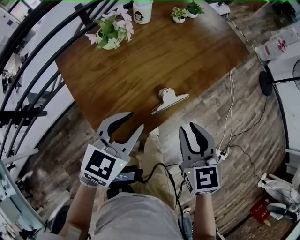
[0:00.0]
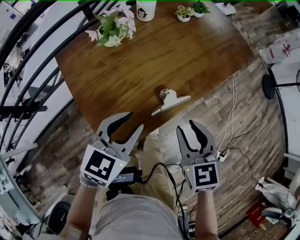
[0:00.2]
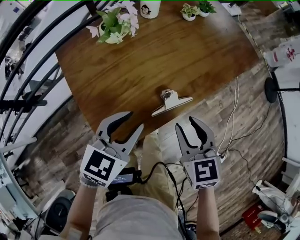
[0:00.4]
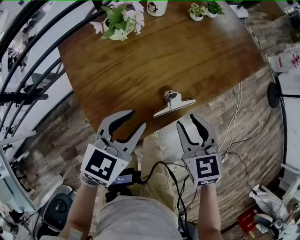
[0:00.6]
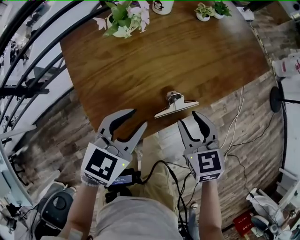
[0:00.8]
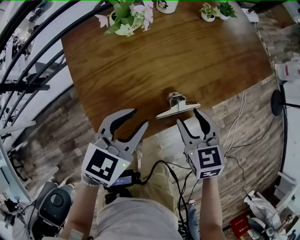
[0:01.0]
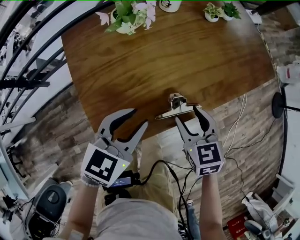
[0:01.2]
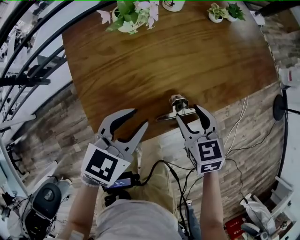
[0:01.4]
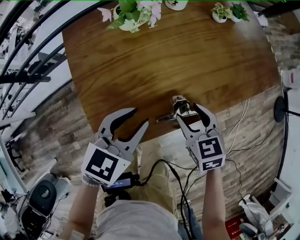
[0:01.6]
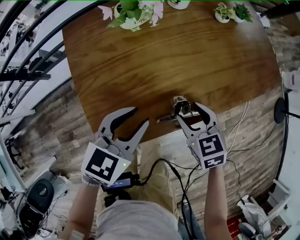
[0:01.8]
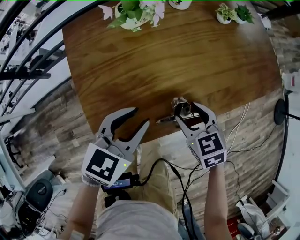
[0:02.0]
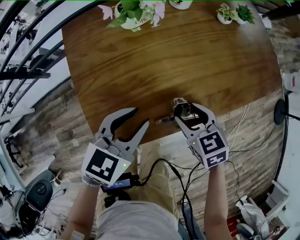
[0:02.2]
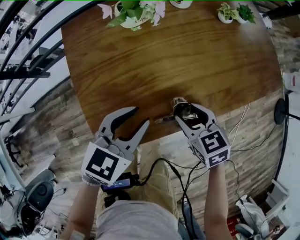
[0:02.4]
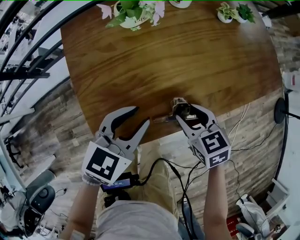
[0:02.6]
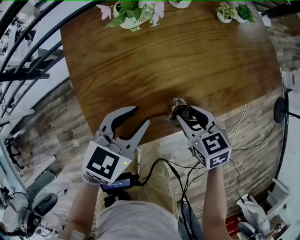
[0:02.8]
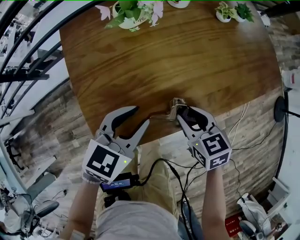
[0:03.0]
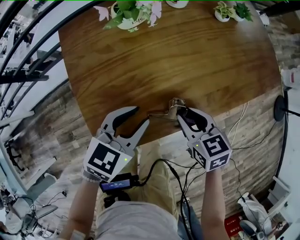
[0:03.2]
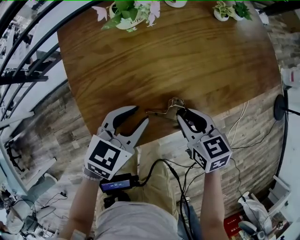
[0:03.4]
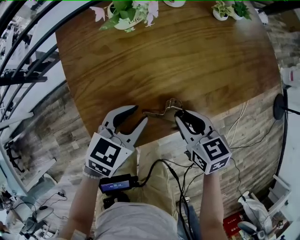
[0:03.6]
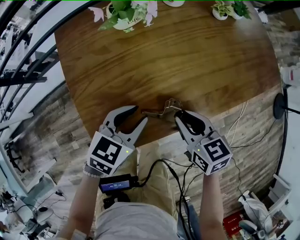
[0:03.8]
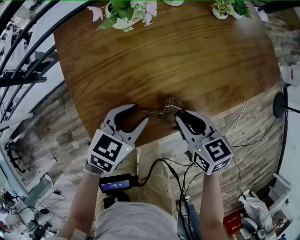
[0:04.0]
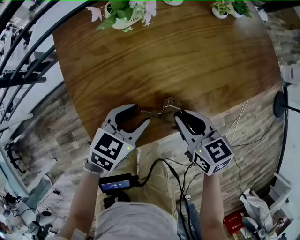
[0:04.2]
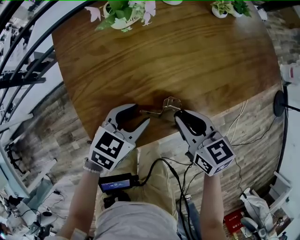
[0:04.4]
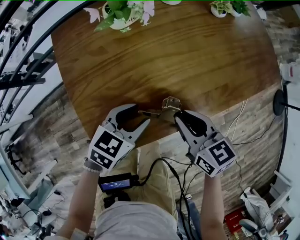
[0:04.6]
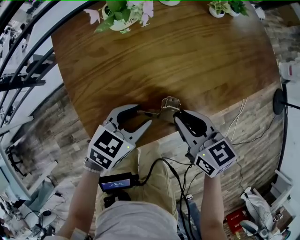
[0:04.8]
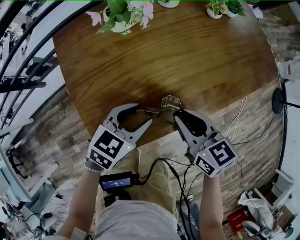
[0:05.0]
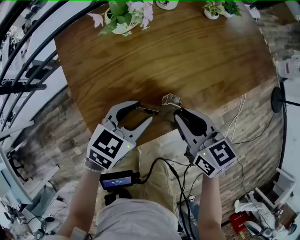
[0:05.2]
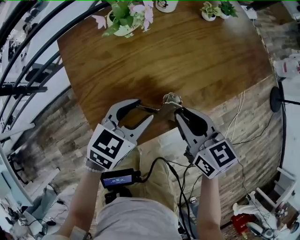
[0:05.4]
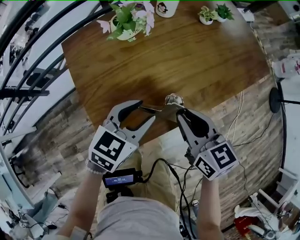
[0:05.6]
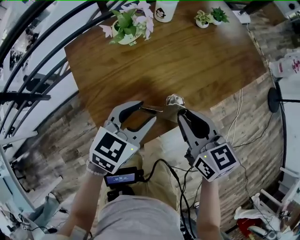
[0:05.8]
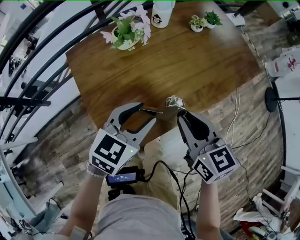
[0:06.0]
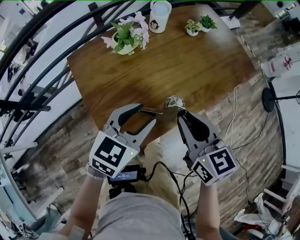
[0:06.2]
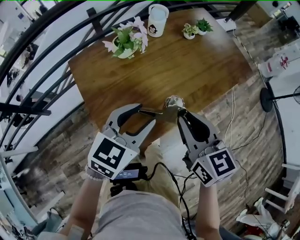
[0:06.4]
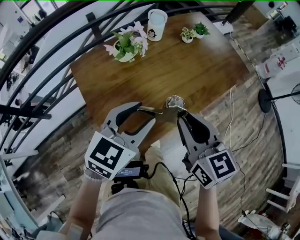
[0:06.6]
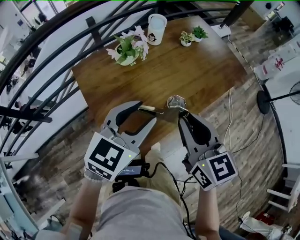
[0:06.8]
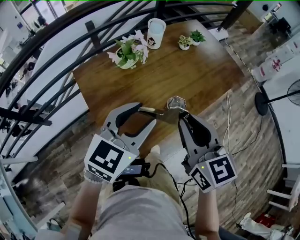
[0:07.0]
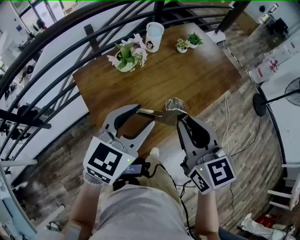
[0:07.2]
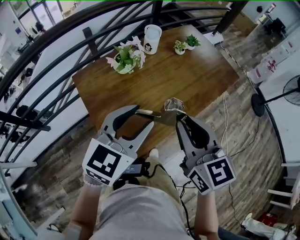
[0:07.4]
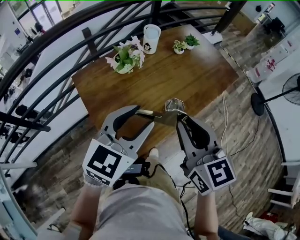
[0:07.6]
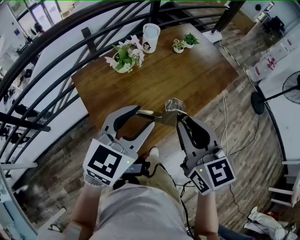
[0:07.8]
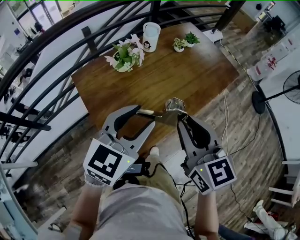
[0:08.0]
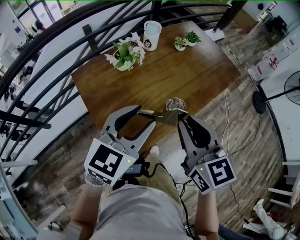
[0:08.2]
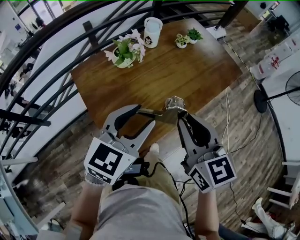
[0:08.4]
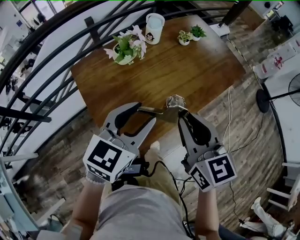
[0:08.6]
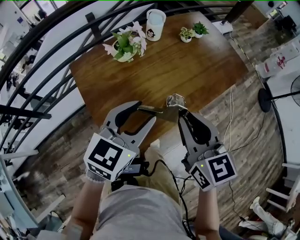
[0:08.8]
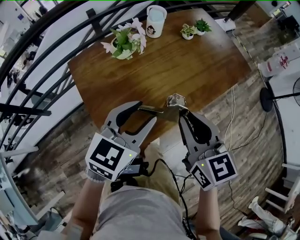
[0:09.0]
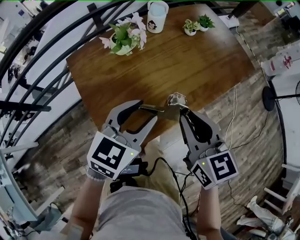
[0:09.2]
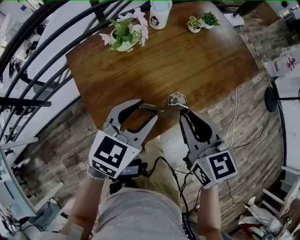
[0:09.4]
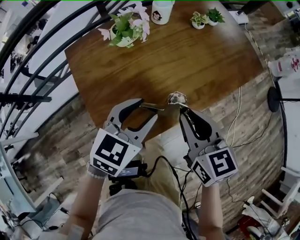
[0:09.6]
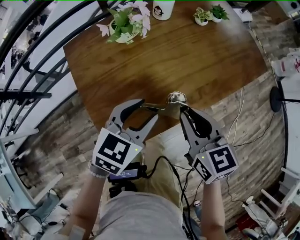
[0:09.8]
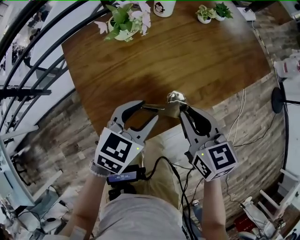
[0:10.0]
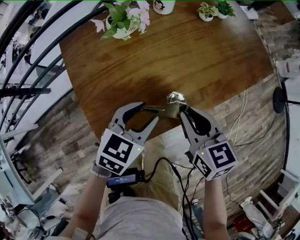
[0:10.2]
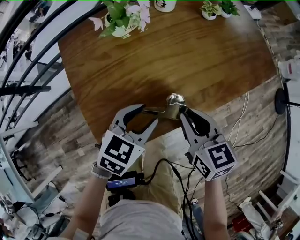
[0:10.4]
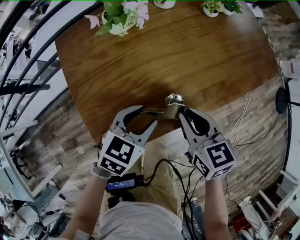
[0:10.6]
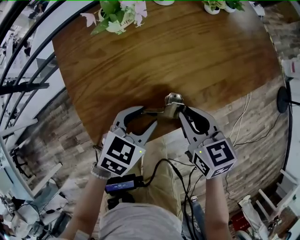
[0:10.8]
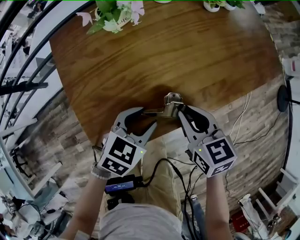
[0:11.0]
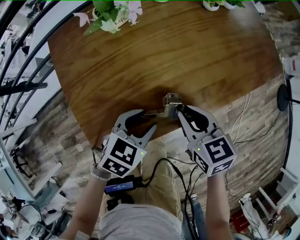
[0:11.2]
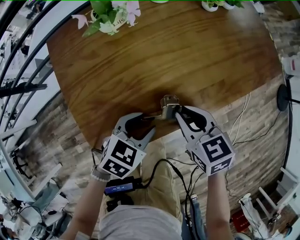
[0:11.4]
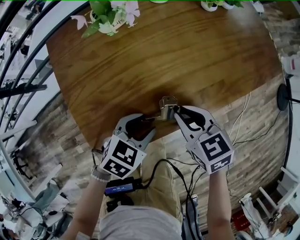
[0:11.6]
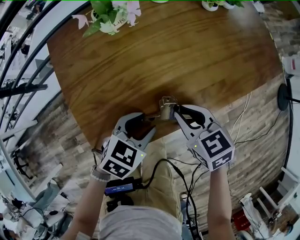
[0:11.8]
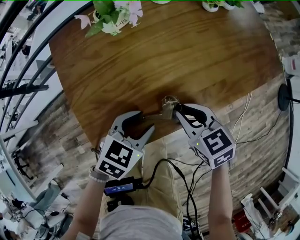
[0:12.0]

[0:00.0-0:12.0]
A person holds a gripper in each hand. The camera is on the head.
0:00.0 to 0:01.6: The right gripper goes about 20 cm downward and forward, rotates about 30 degrees, and opens its fingers; the left gripper goes roughly 5 cm downward.
0:01.6 to 0:03.0: The right gripper closes.
0:03.0 to 0:04.4: The left gripper heads downward, covering approximately 5 cm.
0:04.4 to 0:06.0: Both grippers move upward, approximately 15 cm.
0:06.0 to 0:07.6: Both grippers move upward, roughly 15 cm.
0:07.6 to 0:09.0: The grippers both shift downward by roughly 5 cm.
0:09.0 to 0:10.4: The grippers both shift downward by roughly 15 cm.
0:10.4 to 0:12.0: The two grippers go some 5 cm downward.

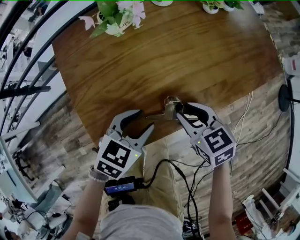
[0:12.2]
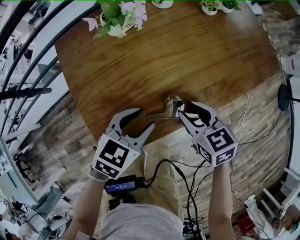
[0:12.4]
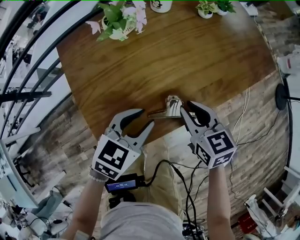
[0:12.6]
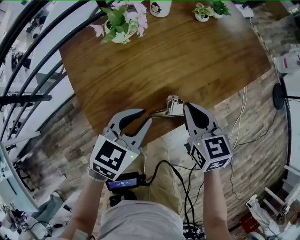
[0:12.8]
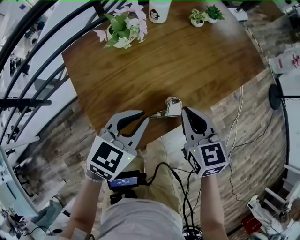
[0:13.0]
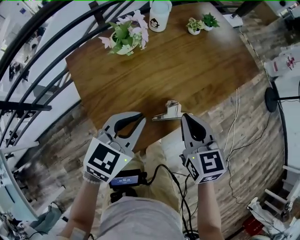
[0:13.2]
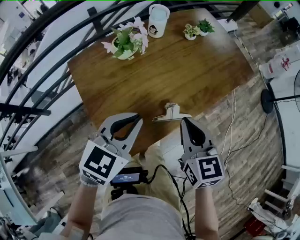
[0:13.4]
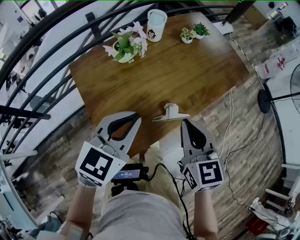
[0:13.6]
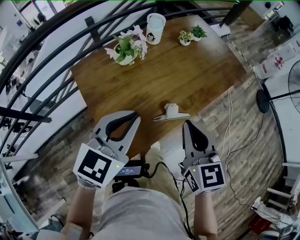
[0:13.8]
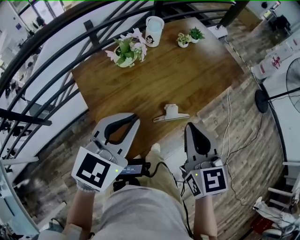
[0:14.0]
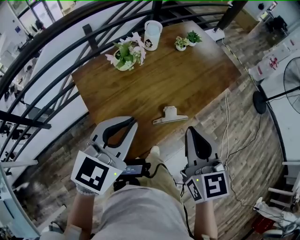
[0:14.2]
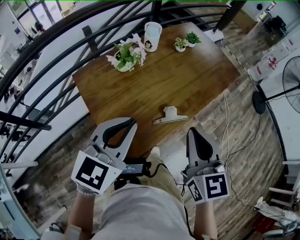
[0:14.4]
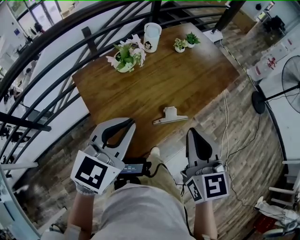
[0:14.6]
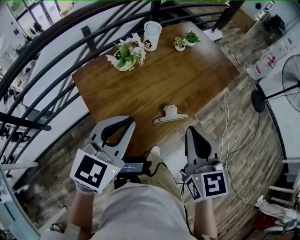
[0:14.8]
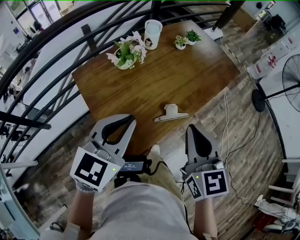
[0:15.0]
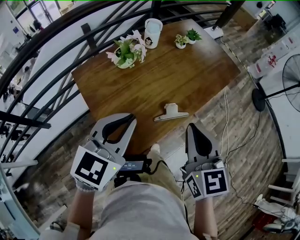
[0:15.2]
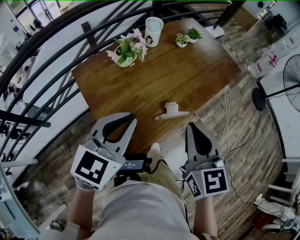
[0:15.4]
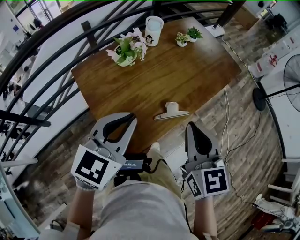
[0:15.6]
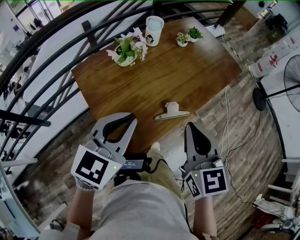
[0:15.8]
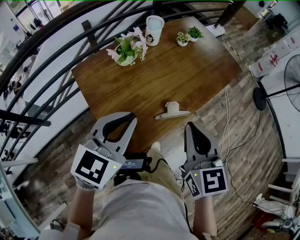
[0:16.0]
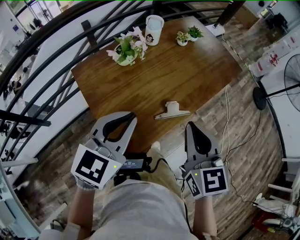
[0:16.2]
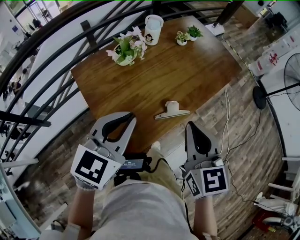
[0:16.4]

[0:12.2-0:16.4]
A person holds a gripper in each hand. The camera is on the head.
0:12.2 to 0:13.6: Both grippers move upward, some 20 cm. The left gripper changes its angle by some 30 degrees, and closes up; the right gripper changes its angle by roughly 40 degrees, and closes.
0:13.6 to 0:15.0: The left gripper ends up some 5 cm from where it was; the right gripper moves upward and backward, about 10 cm.
0:15.0 to 0:16.4: Neither gripper changes place.

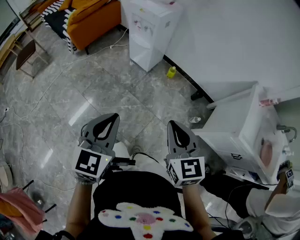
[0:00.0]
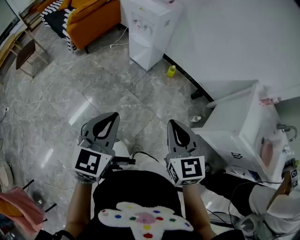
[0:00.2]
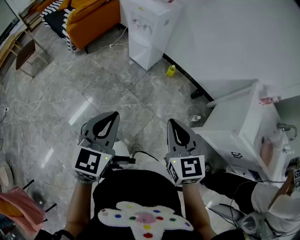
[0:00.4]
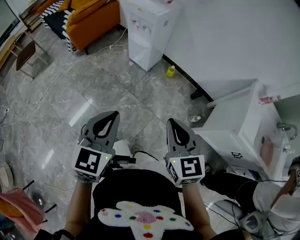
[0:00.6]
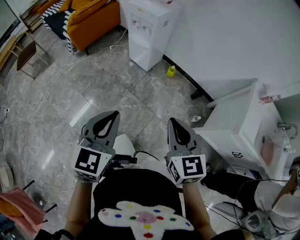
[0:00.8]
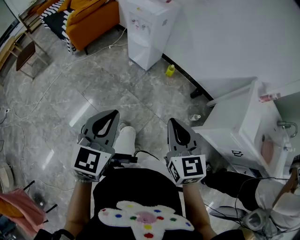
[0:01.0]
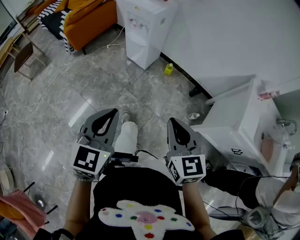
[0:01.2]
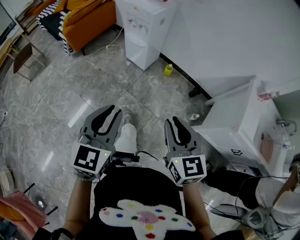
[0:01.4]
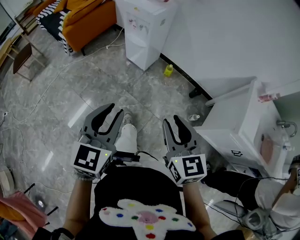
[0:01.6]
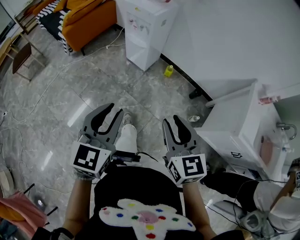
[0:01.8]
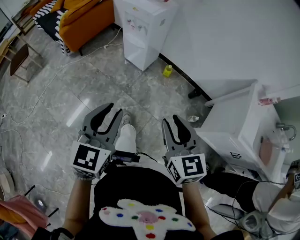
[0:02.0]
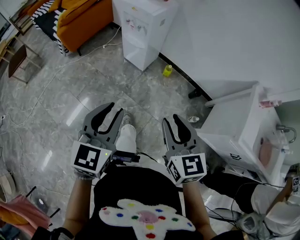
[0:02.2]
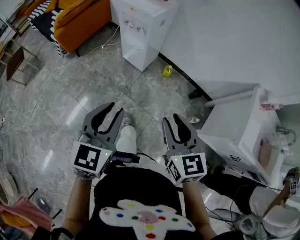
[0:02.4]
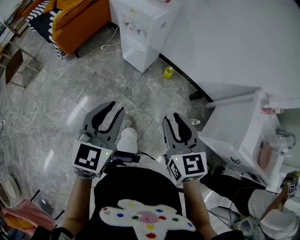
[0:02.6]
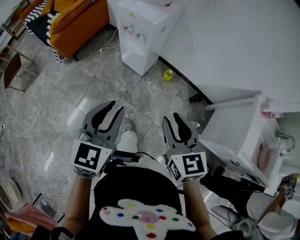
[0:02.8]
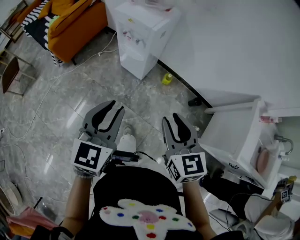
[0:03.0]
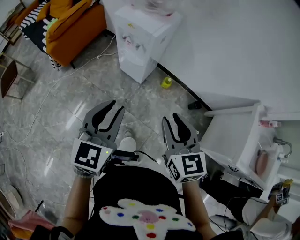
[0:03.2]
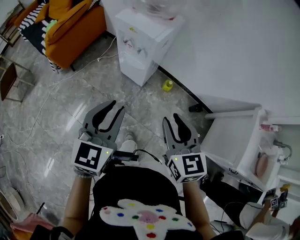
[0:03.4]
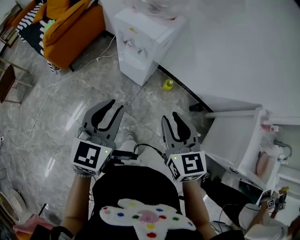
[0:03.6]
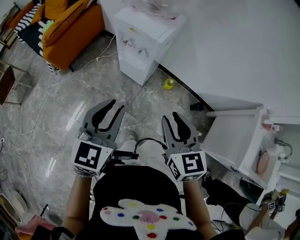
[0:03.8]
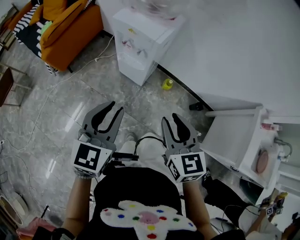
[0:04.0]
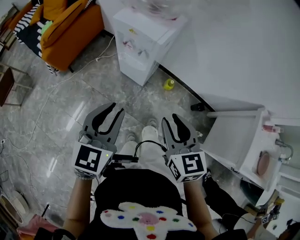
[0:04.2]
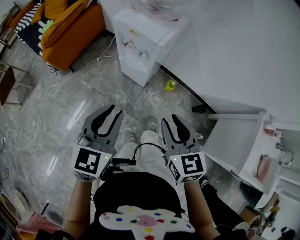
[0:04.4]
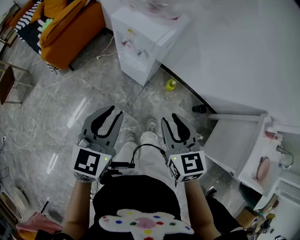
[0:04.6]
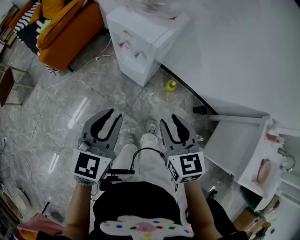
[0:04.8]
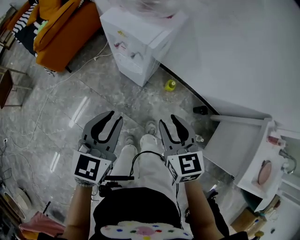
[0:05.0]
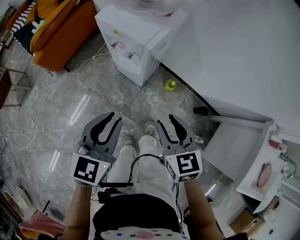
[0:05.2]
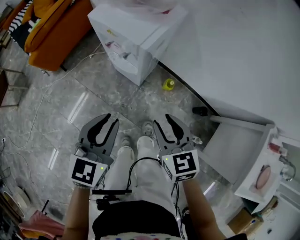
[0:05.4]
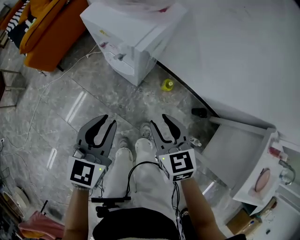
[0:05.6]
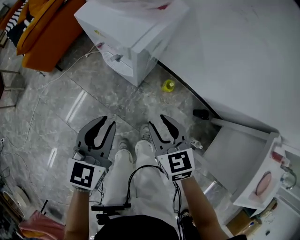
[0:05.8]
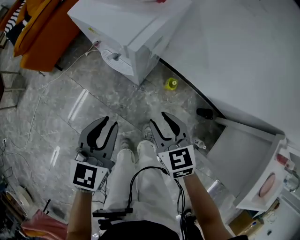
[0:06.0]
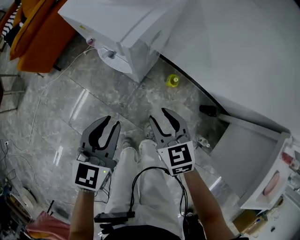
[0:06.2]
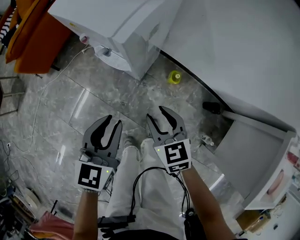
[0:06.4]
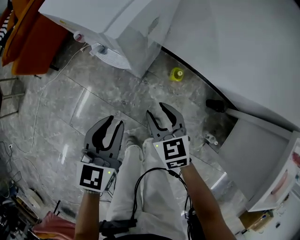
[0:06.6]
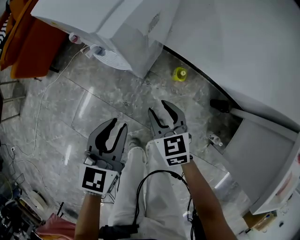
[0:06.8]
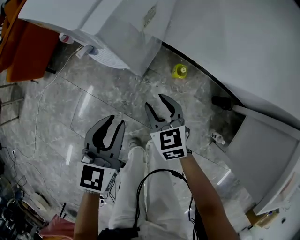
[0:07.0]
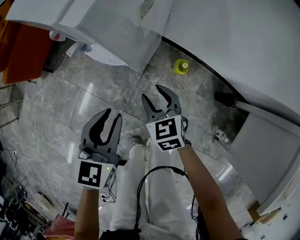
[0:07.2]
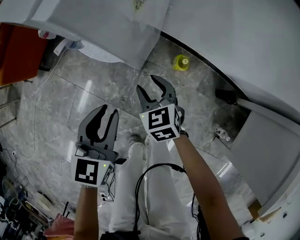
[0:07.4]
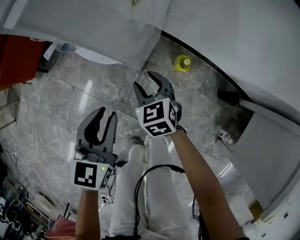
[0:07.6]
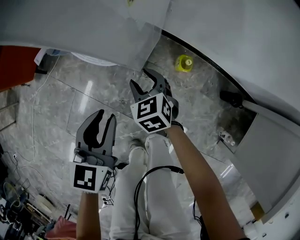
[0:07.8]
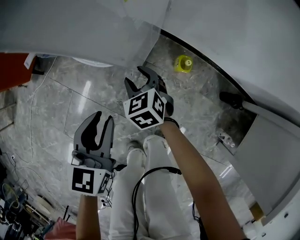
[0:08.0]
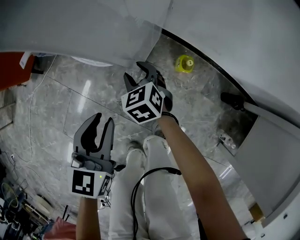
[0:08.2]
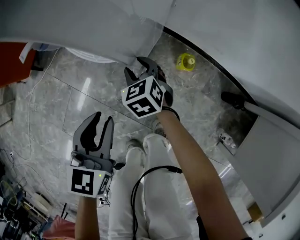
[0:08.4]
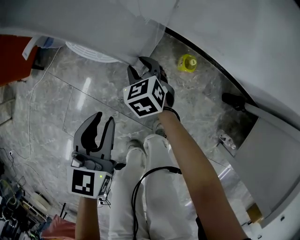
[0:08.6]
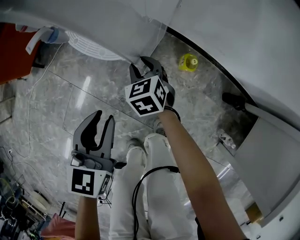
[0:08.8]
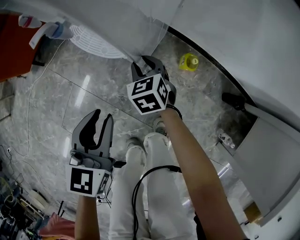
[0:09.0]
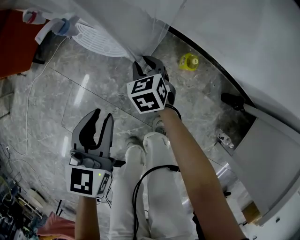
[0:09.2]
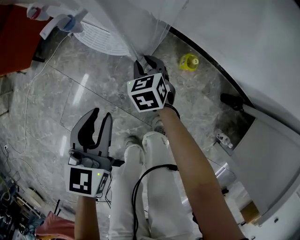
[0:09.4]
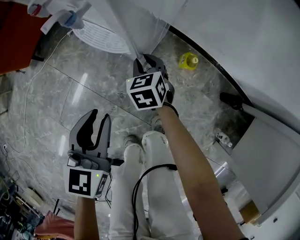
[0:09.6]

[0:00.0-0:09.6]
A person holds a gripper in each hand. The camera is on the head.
0:00.0 to 0:01.6: The right gripper opens its fingers. The left gripper opens up.
0:01.6 to 0:03.2: The grippers both shift forward by approximately 25 cm.
0:03.2 to 0:04.8: The right gripper goes roughly 15 cm forward and downward; the left gripper travels forward by about 10 cm.
0:04.8 to 0:06.4: The right gripper goes about 25 cm downward and forward. Meanwhile the left gripper travels downward, forward and to the right by about 25 cm.
0:06.4 to 0:08.0: The left gripper travels downward by roughly 20 cm. The right gripper shifts roughly 30 cm downward and forward.
0:08.0 to 0:09.6: The right gripper closes its fingers.
